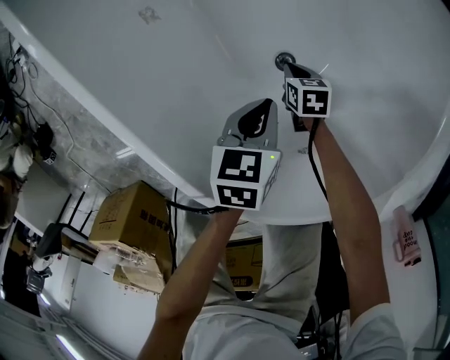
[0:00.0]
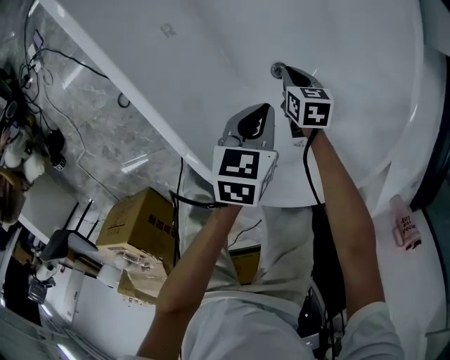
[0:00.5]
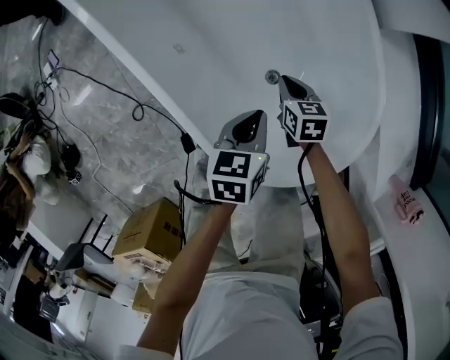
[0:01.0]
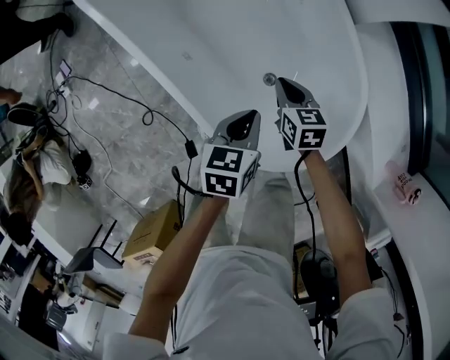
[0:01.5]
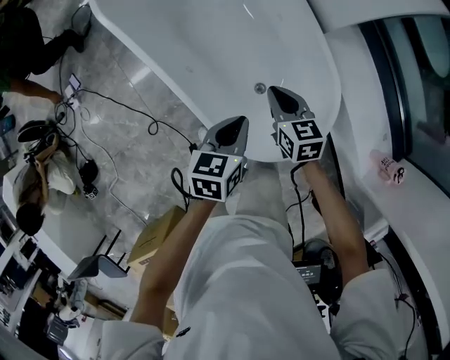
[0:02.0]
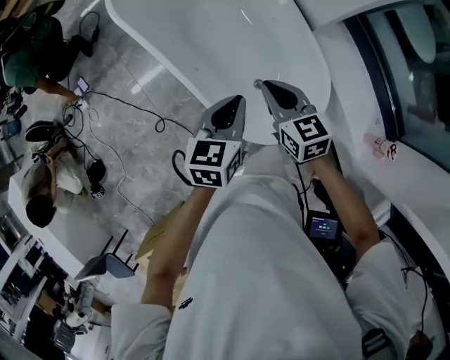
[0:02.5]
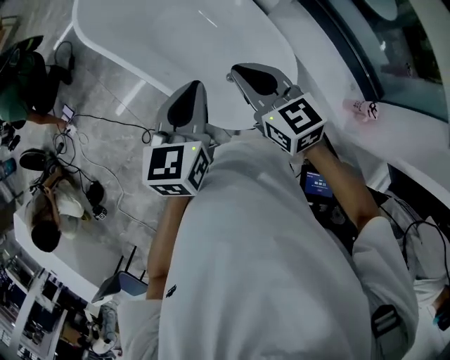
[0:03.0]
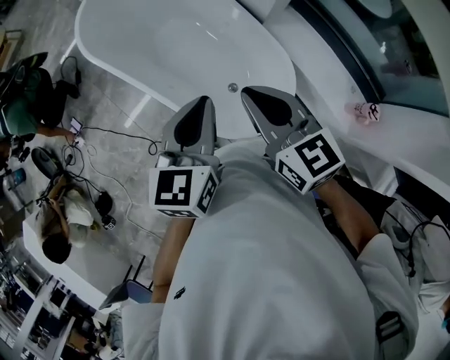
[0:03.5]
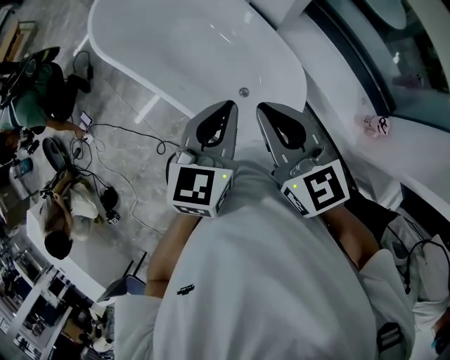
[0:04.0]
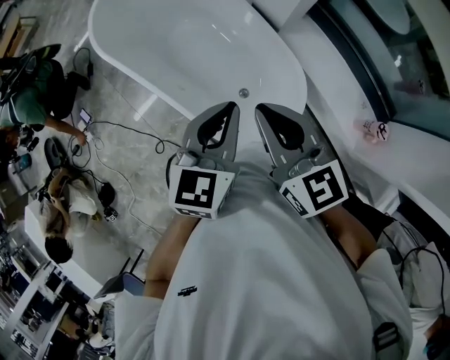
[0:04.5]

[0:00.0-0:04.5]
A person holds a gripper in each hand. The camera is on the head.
0:00.0 to 0:02.0: The grippers both shift upward by some 50 cm. The right gripper tilts its fingers roughly 30 degrees upward. Meanwhile the left gripper changes its angle by approximately 20 degrees.
0:02.0 to 0:04.5: Both grippers move upward, about 30 cm. The left gripper turns by some 30 degrees; the right gripper rotates approximately 30 degrees.

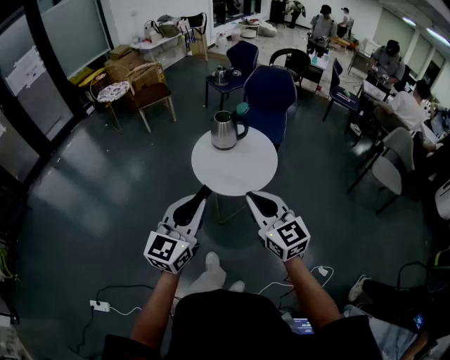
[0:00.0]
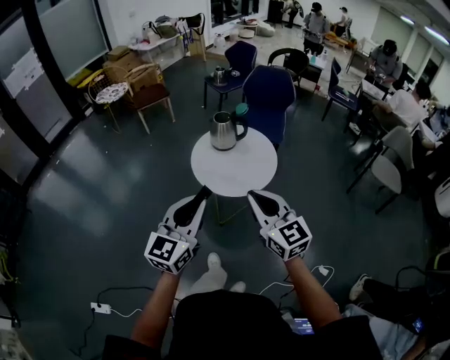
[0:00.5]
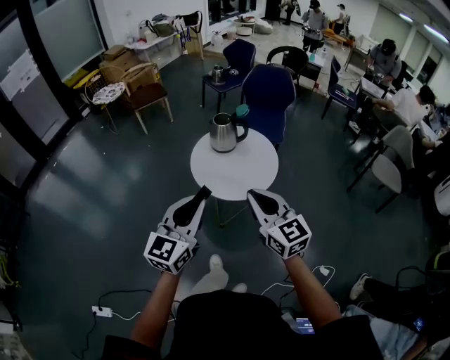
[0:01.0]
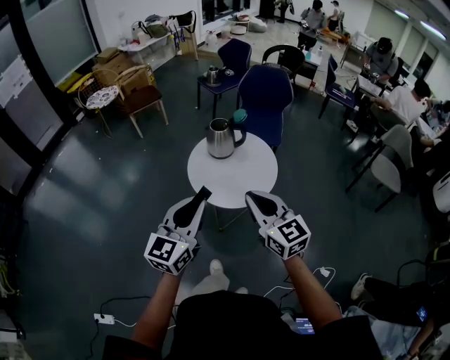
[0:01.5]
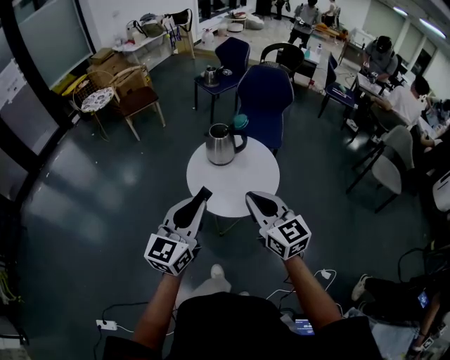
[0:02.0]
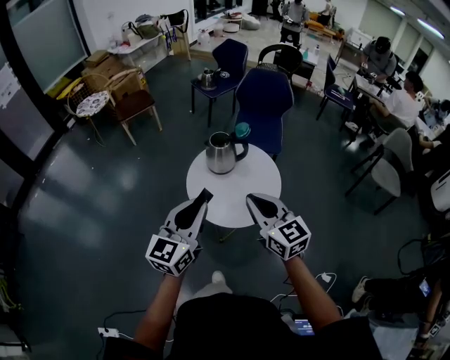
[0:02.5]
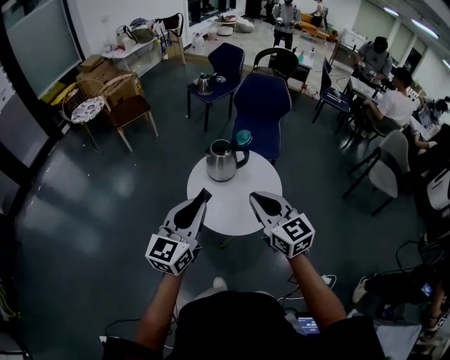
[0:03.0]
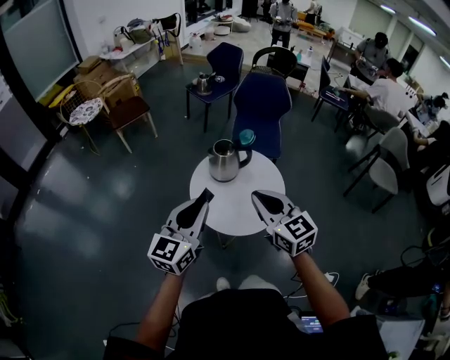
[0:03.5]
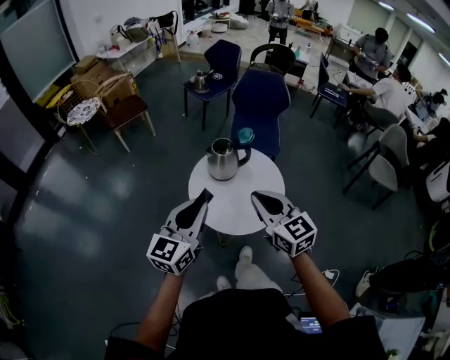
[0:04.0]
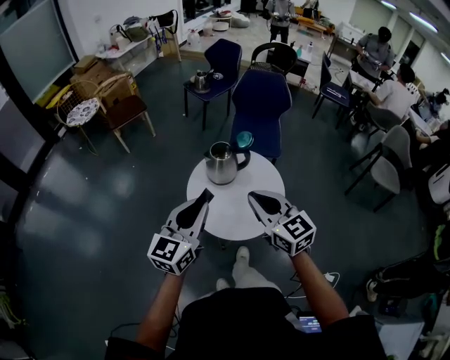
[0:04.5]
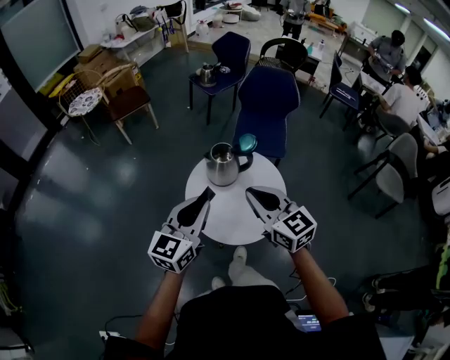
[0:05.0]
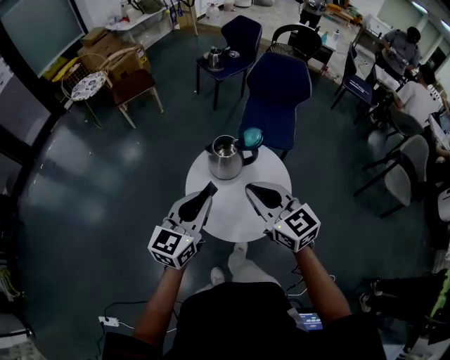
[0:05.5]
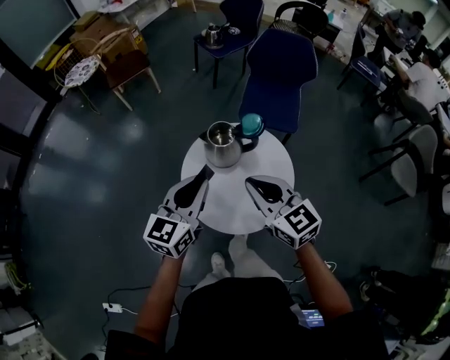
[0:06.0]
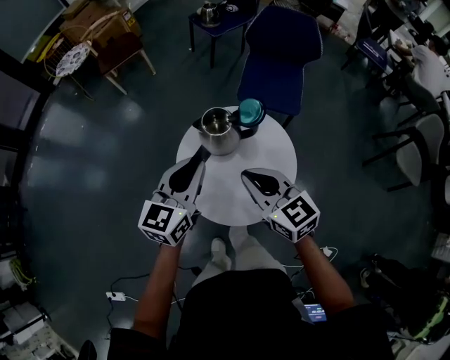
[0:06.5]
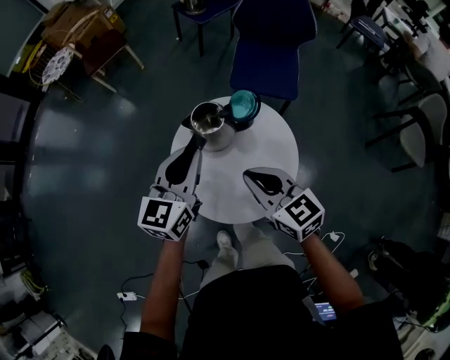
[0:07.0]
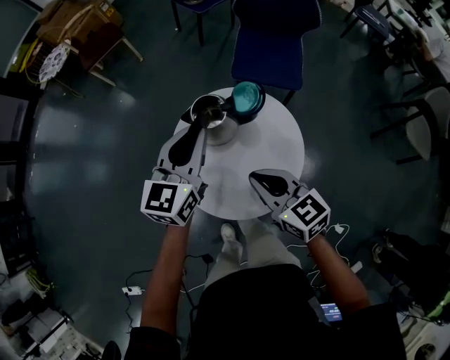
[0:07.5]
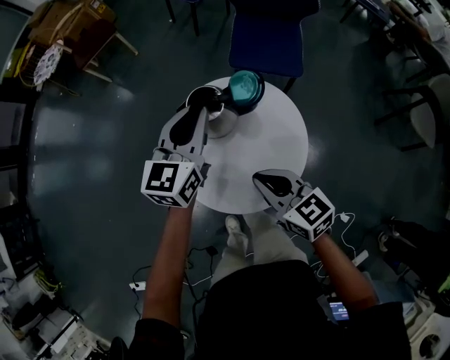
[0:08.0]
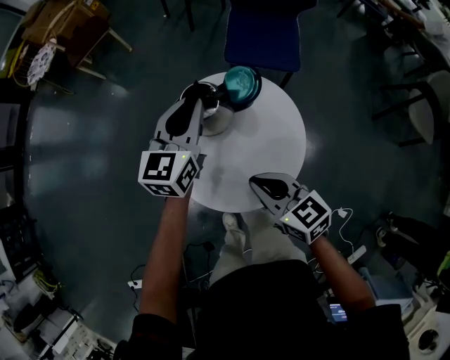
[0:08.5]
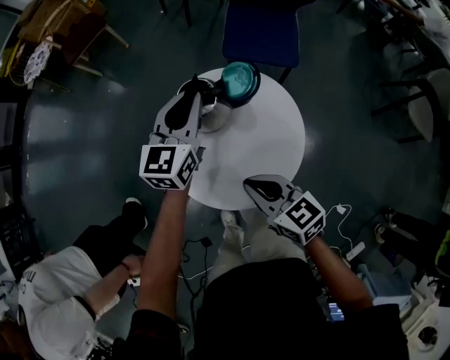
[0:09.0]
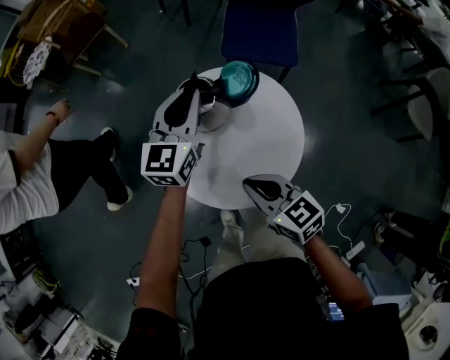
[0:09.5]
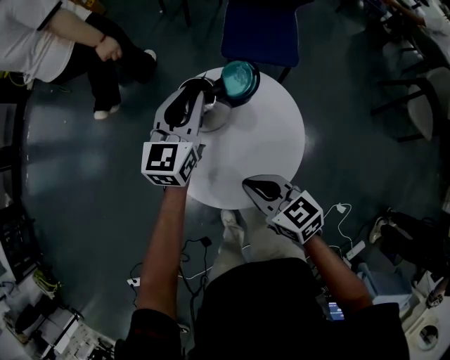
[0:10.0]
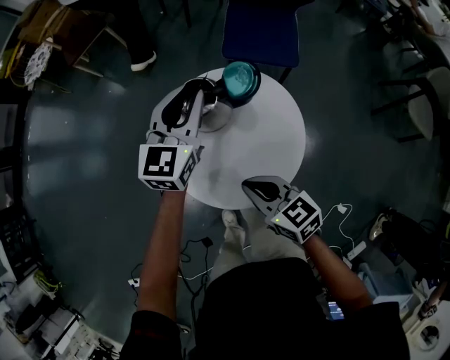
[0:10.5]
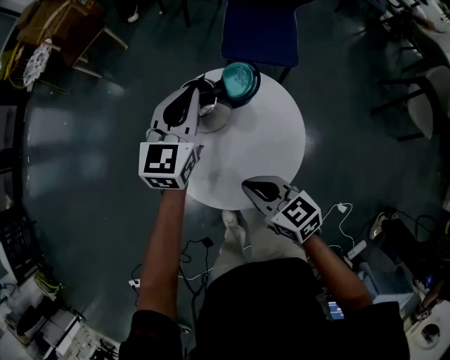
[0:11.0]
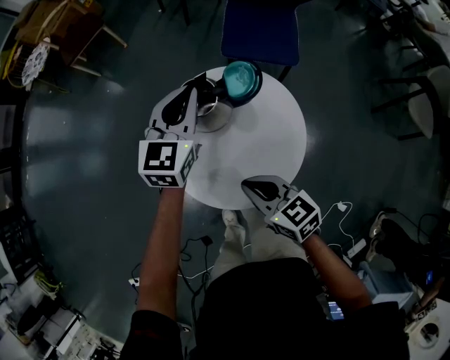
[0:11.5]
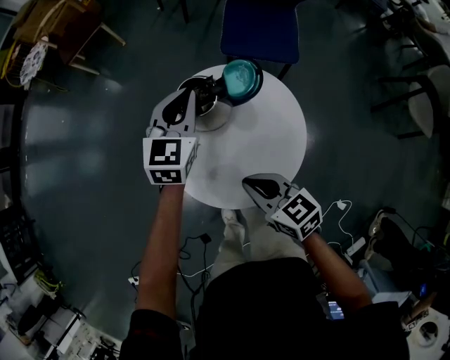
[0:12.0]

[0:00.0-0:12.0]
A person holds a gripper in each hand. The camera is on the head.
0:00.0 to 0:02.0: The grippers both shift forward by approximately 15 cm.
0:02.0 to 0:04.0: The left gripper moves forward and to the left, roughly 15 cm. Meanwhile the right gripper travels forward by about 10 cm.
0:04.0 to 0:06.0: The right gripper travels forward and downward by roughly 20 cm. The left gripper moves forward, downward and to the right, approximately 20 cm.
0:06.0 to 0:08.0: The left gripper travels forward, downward and to the right by some 20 cm, while the right gripper goes roughly 15 cm downward.
0:08.0 to 0:10.0: The left gripper changes place by about 5 cm.
0:10.0 to 0:12.0: The grippers make only small movements.

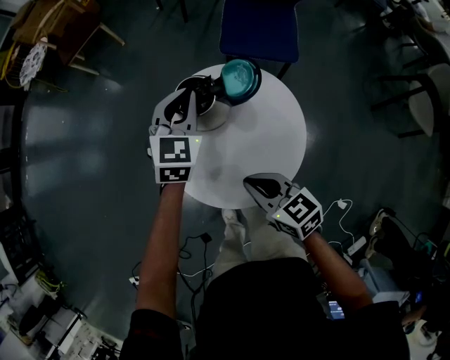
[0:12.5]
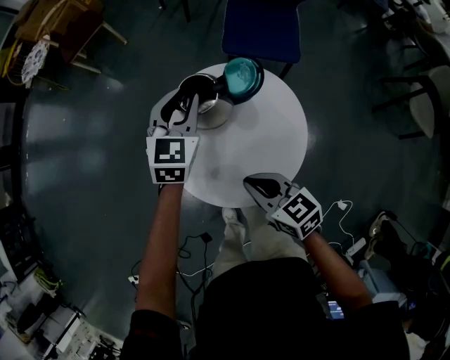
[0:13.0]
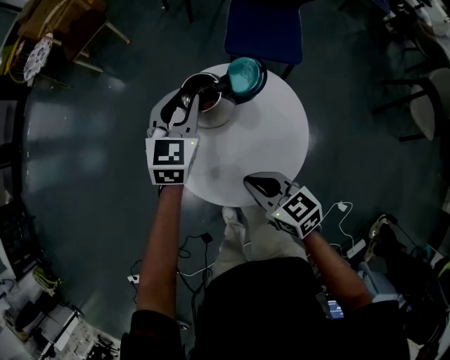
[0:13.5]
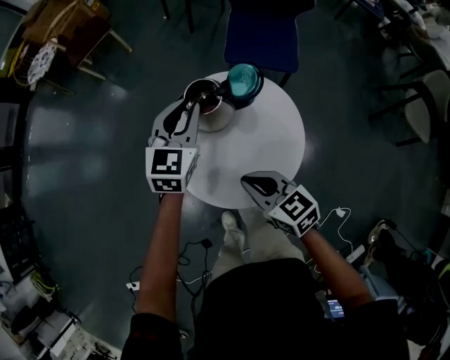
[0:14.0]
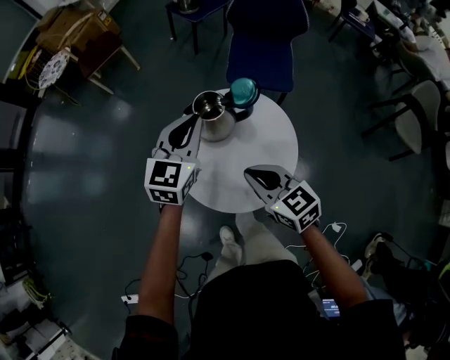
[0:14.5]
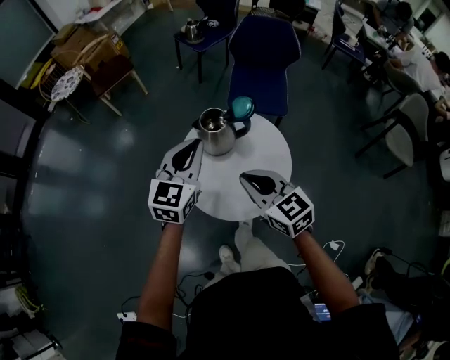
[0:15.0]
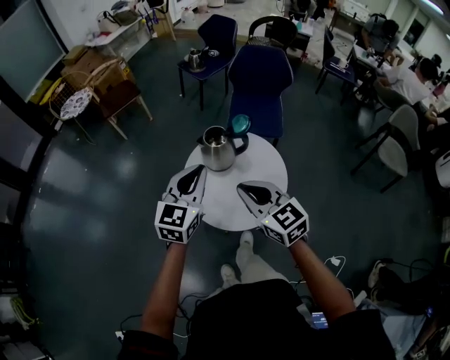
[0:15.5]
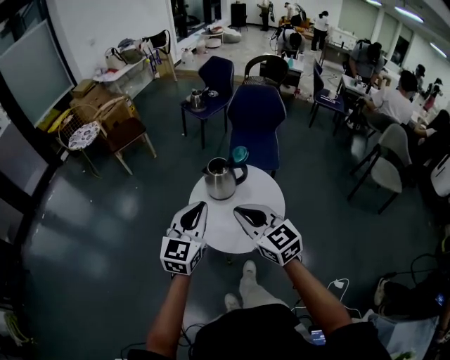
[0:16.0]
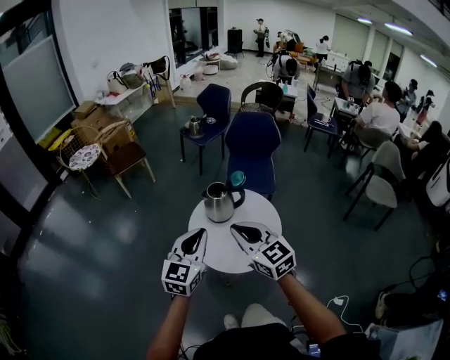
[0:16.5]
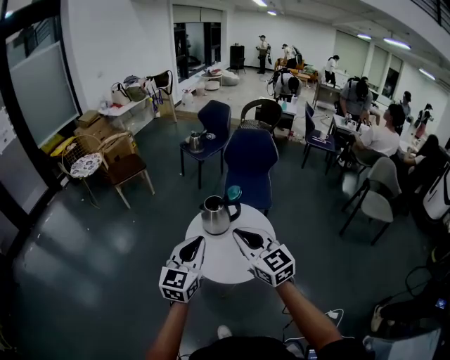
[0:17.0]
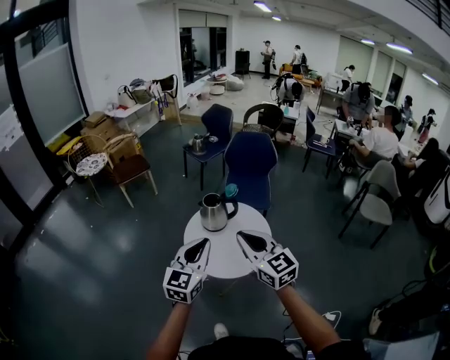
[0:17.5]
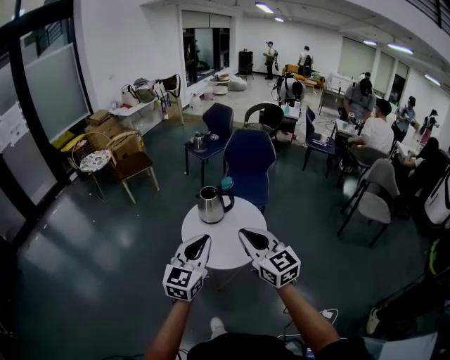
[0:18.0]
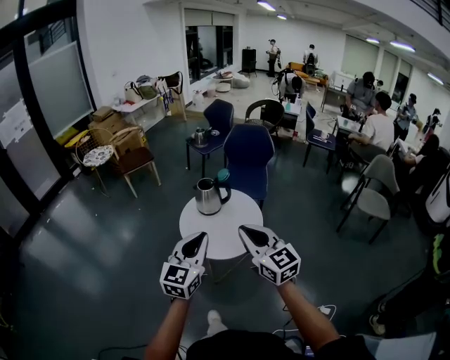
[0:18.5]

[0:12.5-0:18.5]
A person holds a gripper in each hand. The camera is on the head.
0:12.5 to 0:14.5: The right gripper travels upward by some 10 cm, while the left gripper heads upward, backward and to the left, covering approximately 15 cm.
0:14.5 to 0:16.5: The right gripper shifts some 25 cm upward and backward, and rotates roughly 30 degrees. Meanwhile the left gripper goes roughly 30 cm backward and upward.
0:16.5 to 0:18.5: The two grippers go some 25 cm backward and to the right.

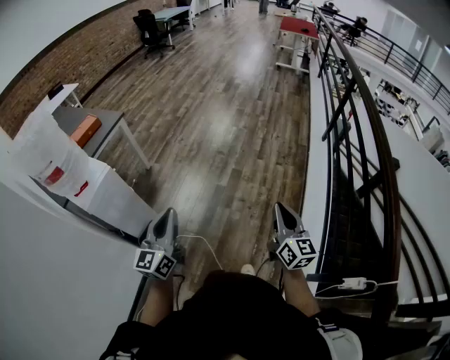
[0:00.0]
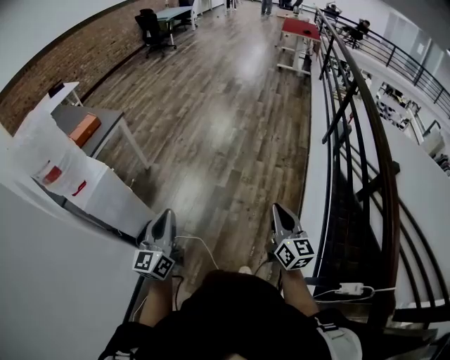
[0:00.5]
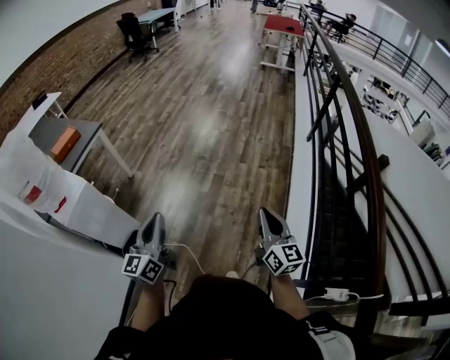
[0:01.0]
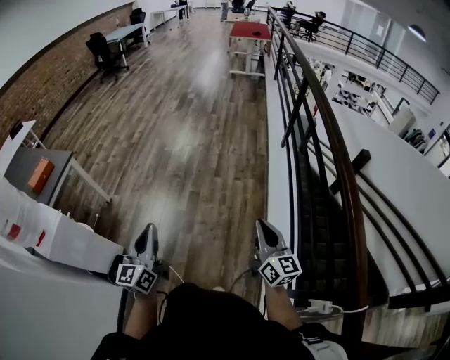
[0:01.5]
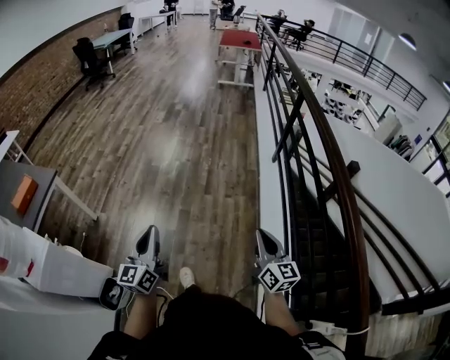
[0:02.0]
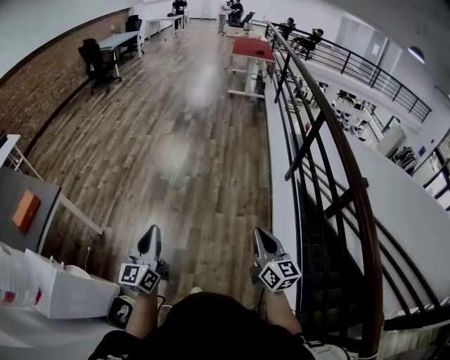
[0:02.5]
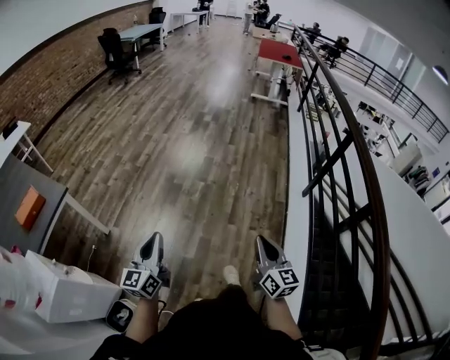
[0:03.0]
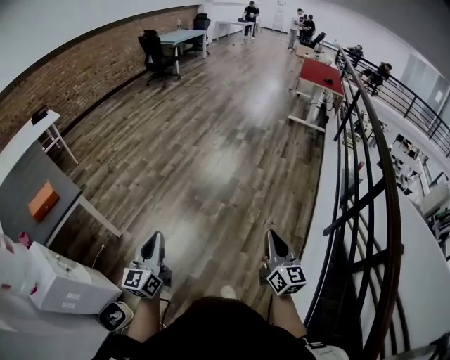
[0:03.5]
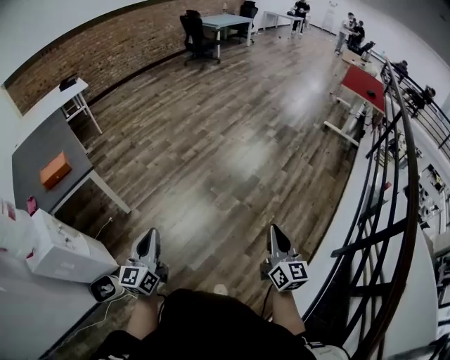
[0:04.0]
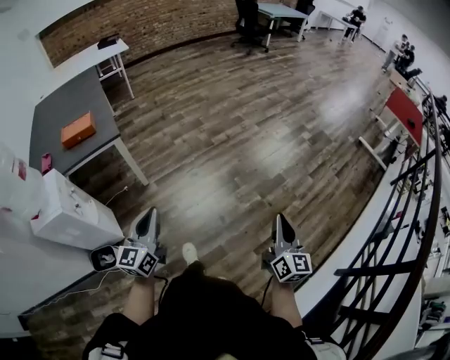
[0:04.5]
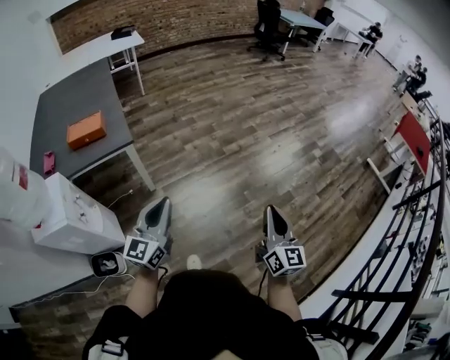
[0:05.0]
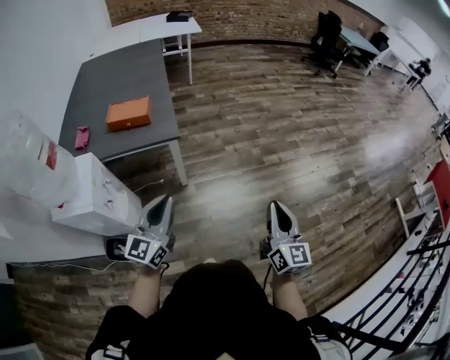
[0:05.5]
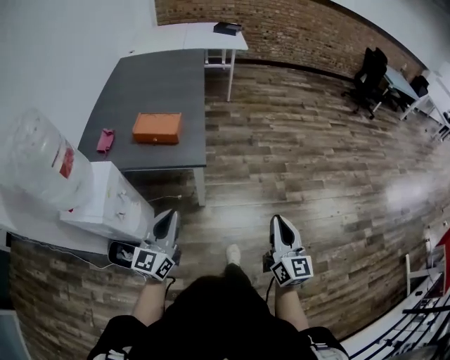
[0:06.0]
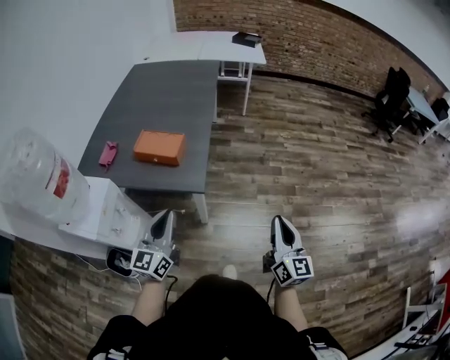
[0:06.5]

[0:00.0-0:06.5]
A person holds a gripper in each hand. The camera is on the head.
0:00.0 to 0:02.0: The left gripper moves forward and to the right, about 25 cm; the right gripper travels to the right and forward by some 20 cm.
0:02.0 to 0:04.5: The right gripper shifts by about 60 cm, and swivels about 40 degrees. Meanwhile the left gripper ends up about 35 cm from where it was, and turns by roughly 50 degrees.
0:04.5 to 0:06.5: The right gripper ends up about 60 cm from where it was, and rotates roughly 40 degrees. Meanwhile the left gripper moves some 35 cm, and swivels some 40 degrees.
